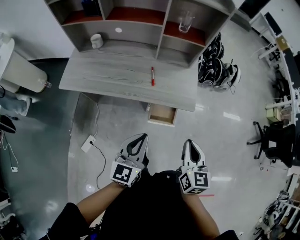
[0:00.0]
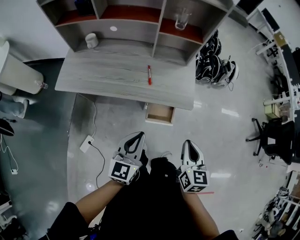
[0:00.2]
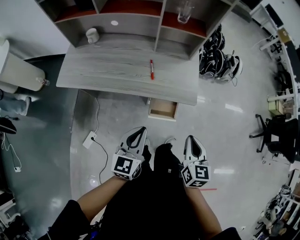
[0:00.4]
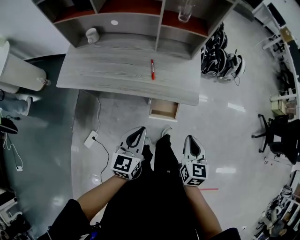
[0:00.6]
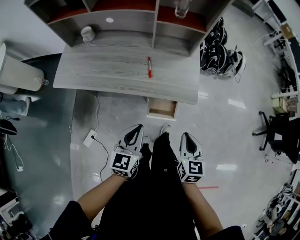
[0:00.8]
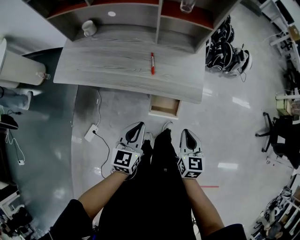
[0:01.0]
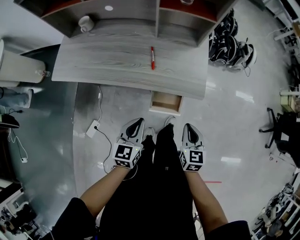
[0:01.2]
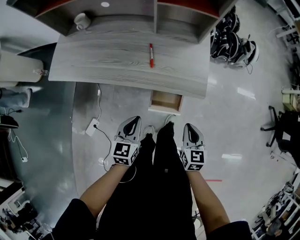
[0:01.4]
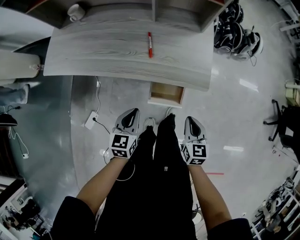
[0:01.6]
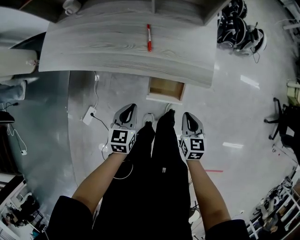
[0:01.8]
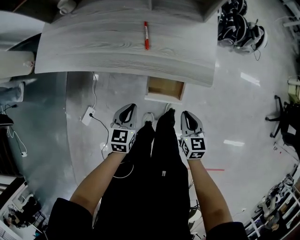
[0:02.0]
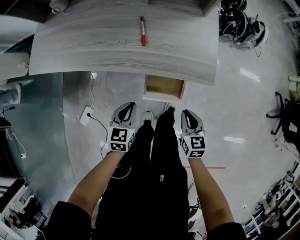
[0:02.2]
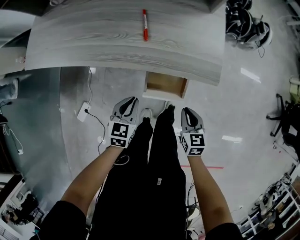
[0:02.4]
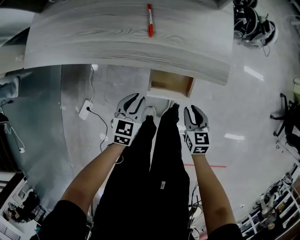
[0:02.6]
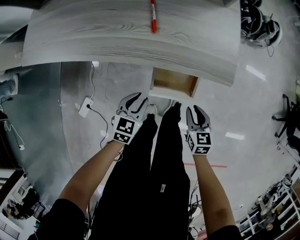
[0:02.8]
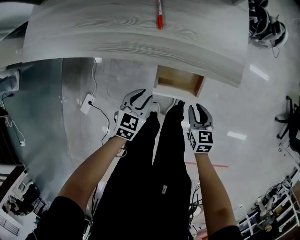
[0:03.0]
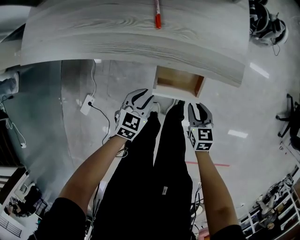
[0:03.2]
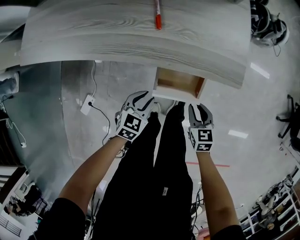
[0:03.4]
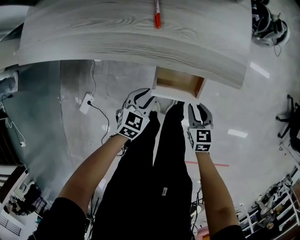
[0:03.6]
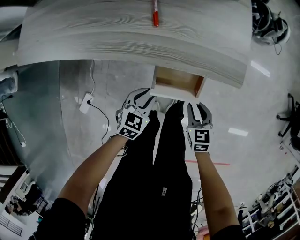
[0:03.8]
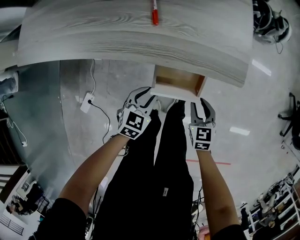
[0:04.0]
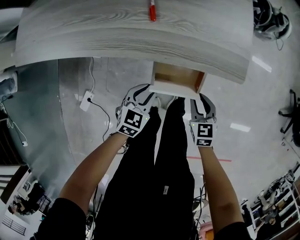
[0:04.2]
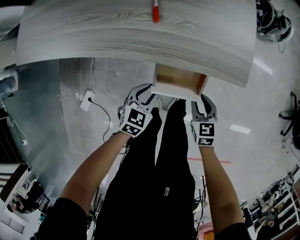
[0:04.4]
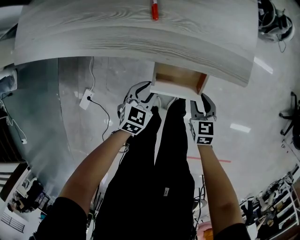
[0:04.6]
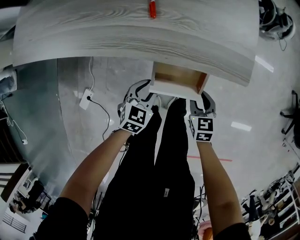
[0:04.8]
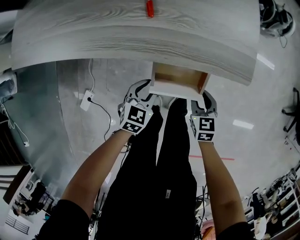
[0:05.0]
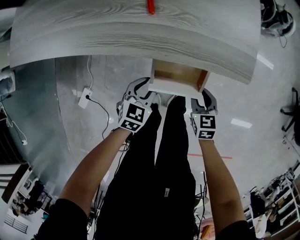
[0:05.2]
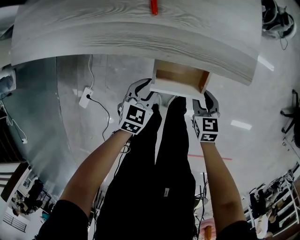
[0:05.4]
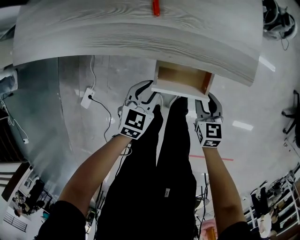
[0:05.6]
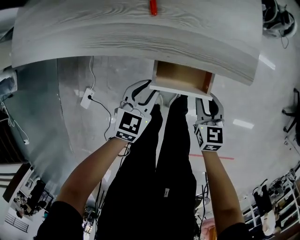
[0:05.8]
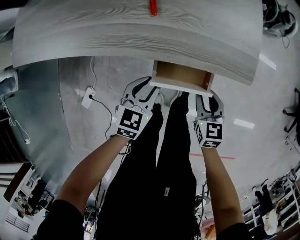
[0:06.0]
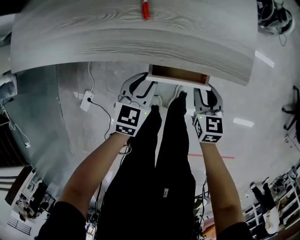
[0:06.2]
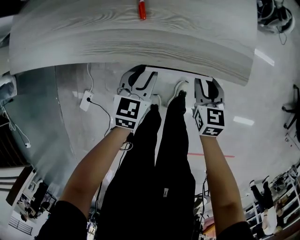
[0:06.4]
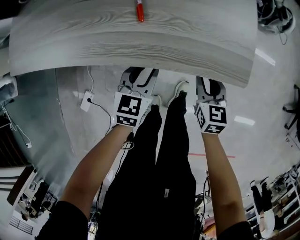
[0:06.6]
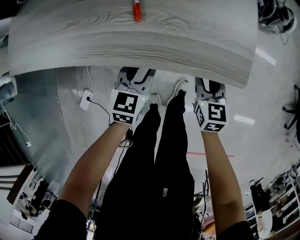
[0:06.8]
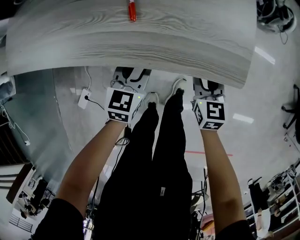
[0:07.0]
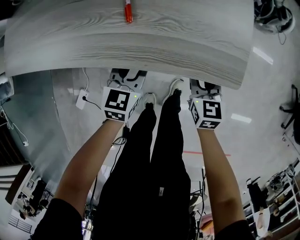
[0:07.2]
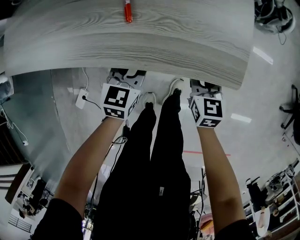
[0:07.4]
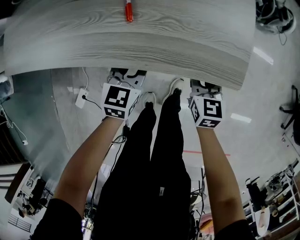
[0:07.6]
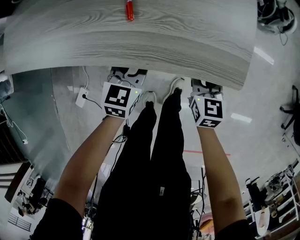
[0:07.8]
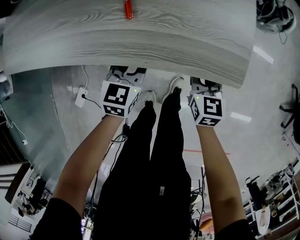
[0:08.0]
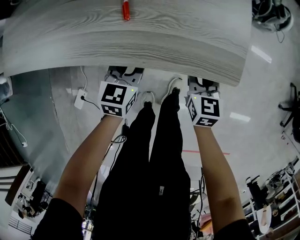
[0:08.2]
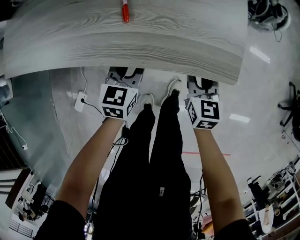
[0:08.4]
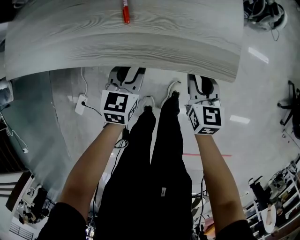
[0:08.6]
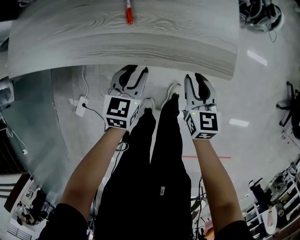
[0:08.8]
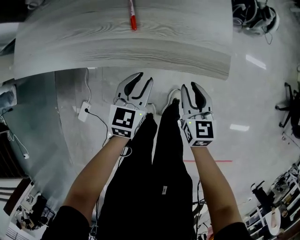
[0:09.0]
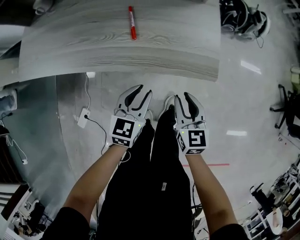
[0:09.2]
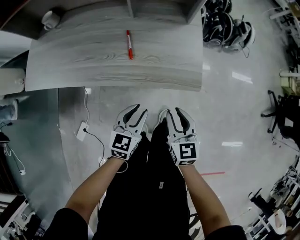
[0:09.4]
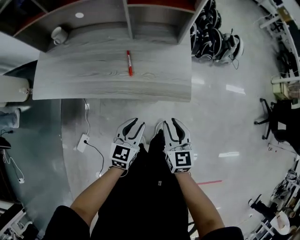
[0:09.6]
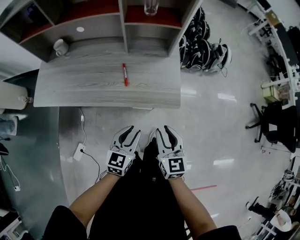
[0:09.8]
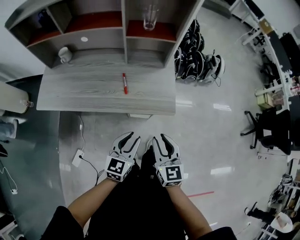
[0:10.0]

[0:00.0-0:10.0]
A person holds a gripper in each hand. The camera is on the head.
0:00.0 to 0:01.4: The two grippers go approximately 20 cm downward. The left gripper swivels about 20 degrees.
0:01.4 to 0:02.8: The grippers both shift downward by roughly 20 cm. The left gripper opens its fingers.
0:02.8 to 0:04.2: The left gripper shifts by about 5 cm.
0:04.2 to 0:05.8: The grippers stay close to where they were, moving slightly.
0:05.8 to 0:07.2: Both grippers travel together forward, approximately 10 cm.
0:07.2 to 0:08.6: There are only small adjustments of the grippers.
0:08.6 to 0:10.0: The two grippers go approximately 35 cm upward and backward.

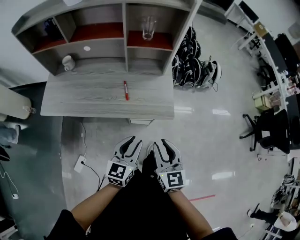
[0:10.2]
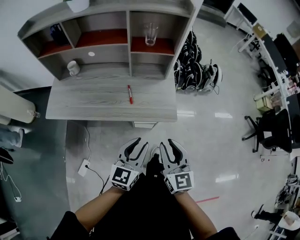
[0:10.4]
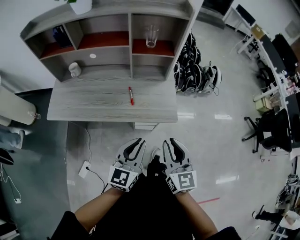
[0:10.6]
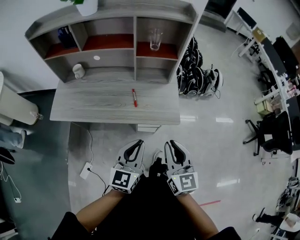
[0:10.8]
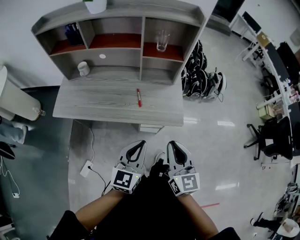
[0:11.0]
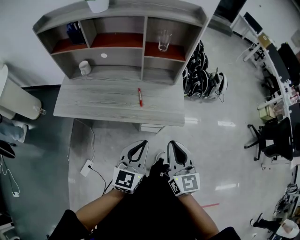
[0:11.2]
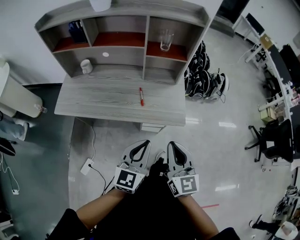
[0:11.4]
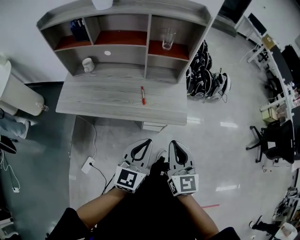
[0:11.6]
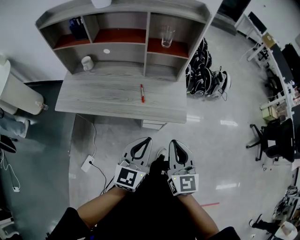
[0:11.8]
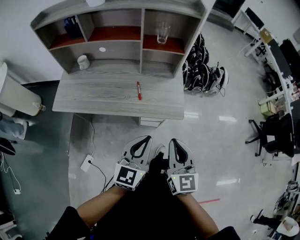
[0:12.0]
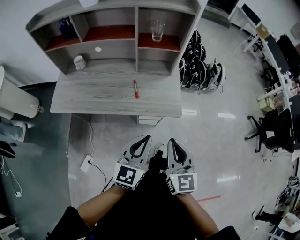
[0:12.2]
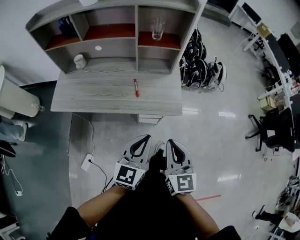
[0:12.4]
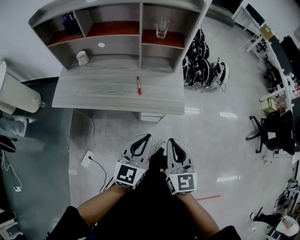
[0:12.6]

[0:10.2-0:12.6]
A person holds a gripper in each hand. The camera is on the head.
0:10.2 to 0:11.4: The grippers both shift upward by about 10 cm. The left gripper closes its fingers. The right gripper closes its fingers.
0:11.4 to 0:12.6: The grippers make only small movements.

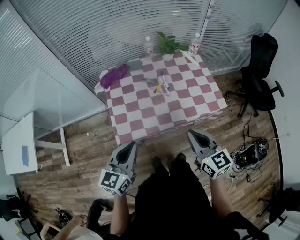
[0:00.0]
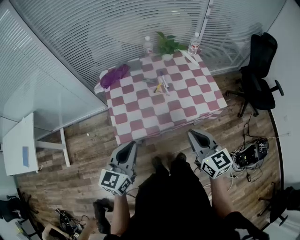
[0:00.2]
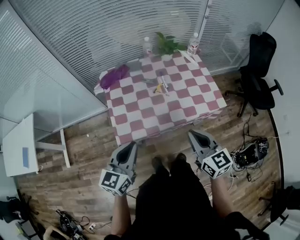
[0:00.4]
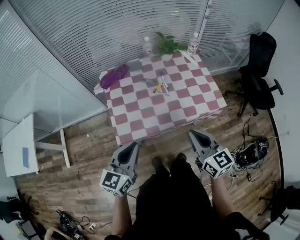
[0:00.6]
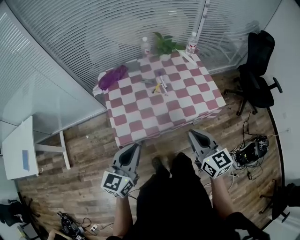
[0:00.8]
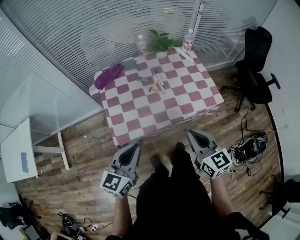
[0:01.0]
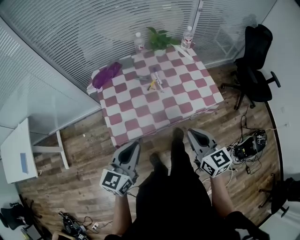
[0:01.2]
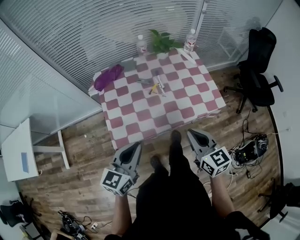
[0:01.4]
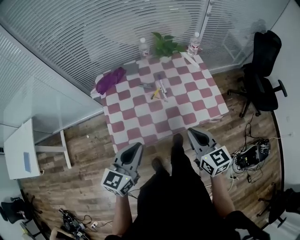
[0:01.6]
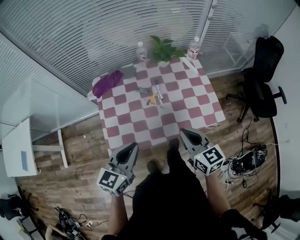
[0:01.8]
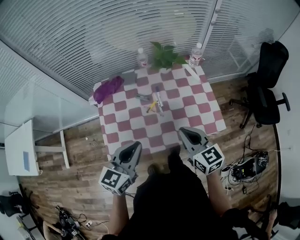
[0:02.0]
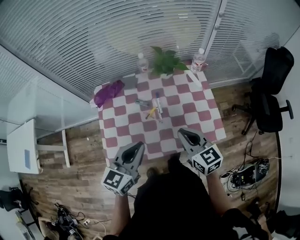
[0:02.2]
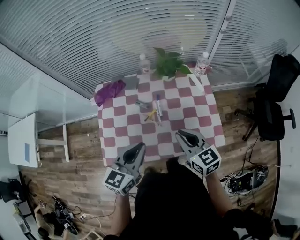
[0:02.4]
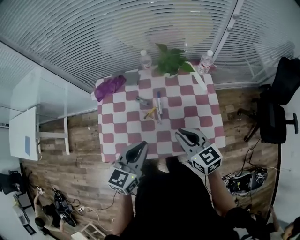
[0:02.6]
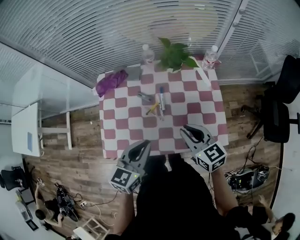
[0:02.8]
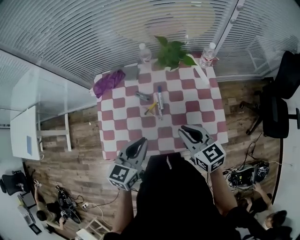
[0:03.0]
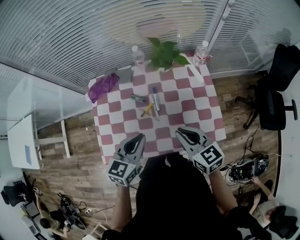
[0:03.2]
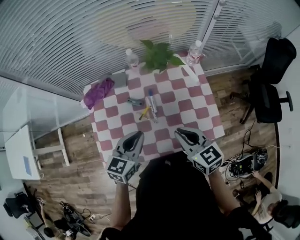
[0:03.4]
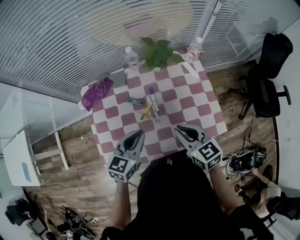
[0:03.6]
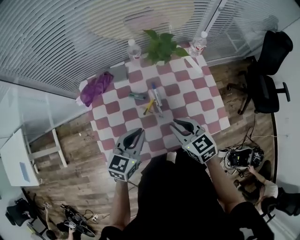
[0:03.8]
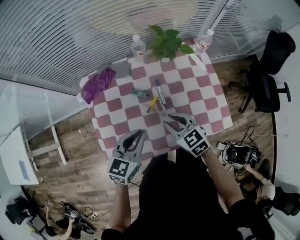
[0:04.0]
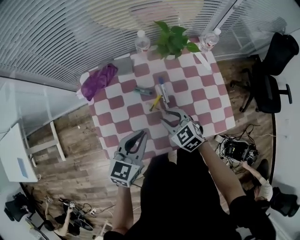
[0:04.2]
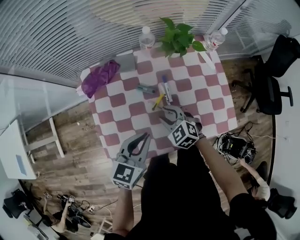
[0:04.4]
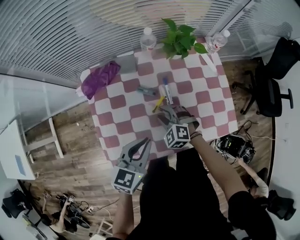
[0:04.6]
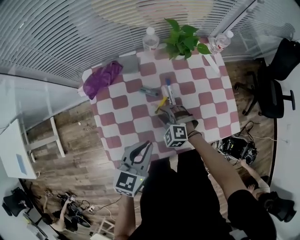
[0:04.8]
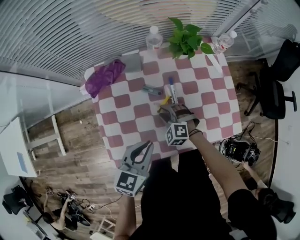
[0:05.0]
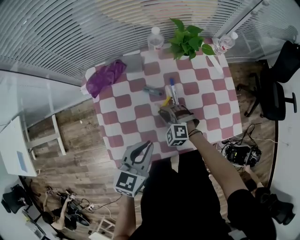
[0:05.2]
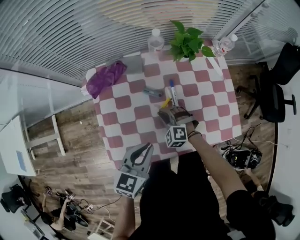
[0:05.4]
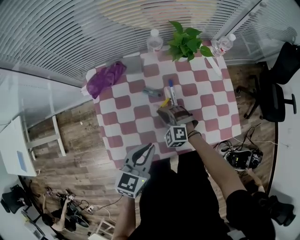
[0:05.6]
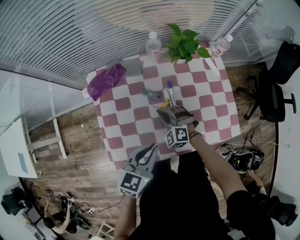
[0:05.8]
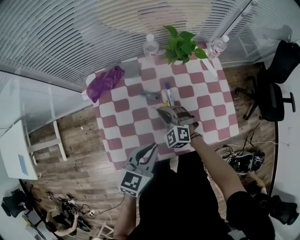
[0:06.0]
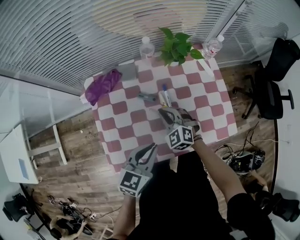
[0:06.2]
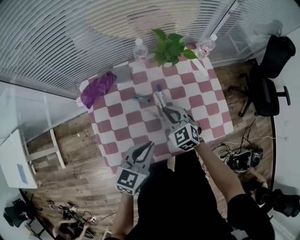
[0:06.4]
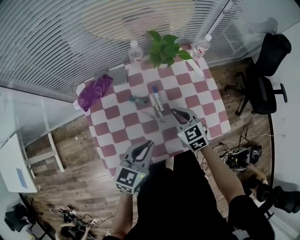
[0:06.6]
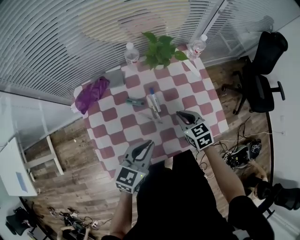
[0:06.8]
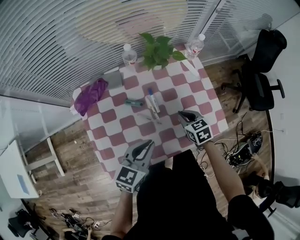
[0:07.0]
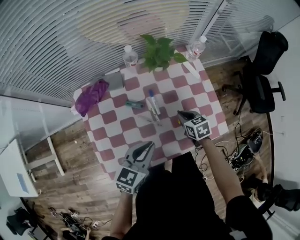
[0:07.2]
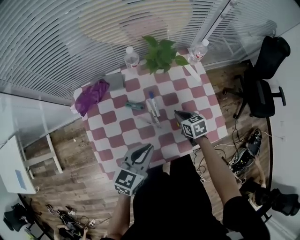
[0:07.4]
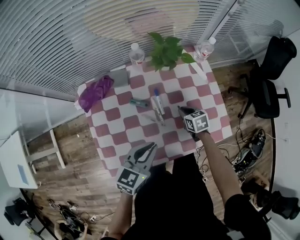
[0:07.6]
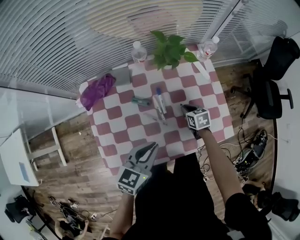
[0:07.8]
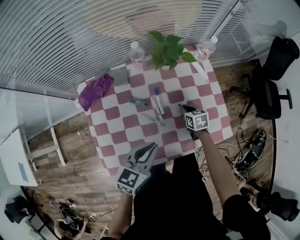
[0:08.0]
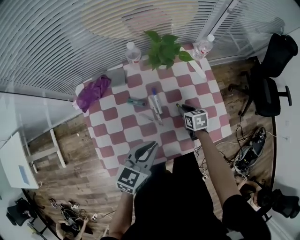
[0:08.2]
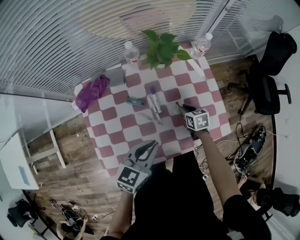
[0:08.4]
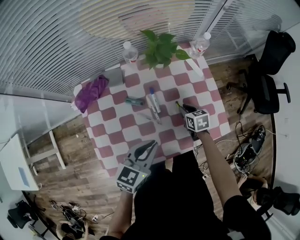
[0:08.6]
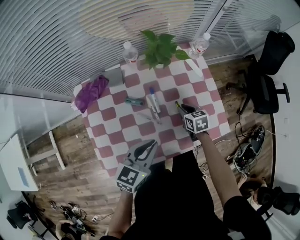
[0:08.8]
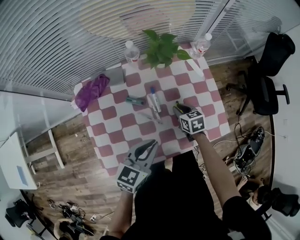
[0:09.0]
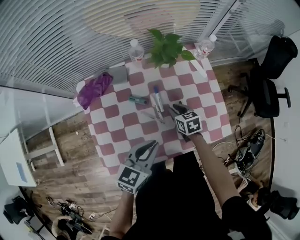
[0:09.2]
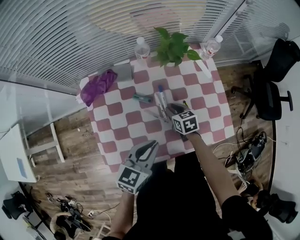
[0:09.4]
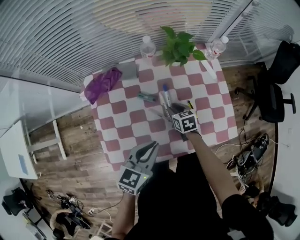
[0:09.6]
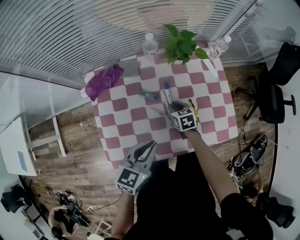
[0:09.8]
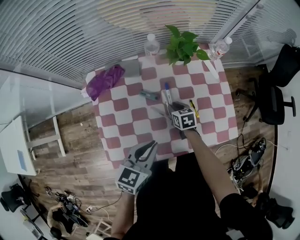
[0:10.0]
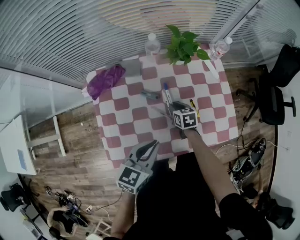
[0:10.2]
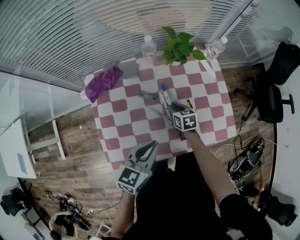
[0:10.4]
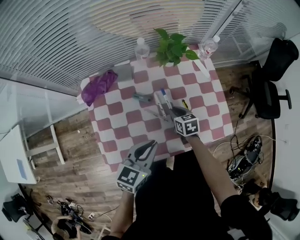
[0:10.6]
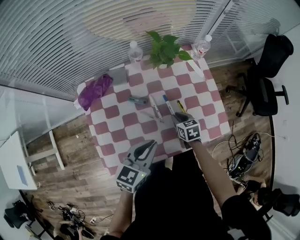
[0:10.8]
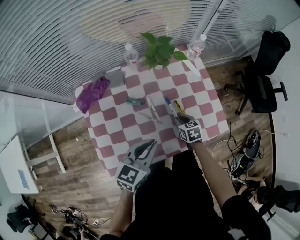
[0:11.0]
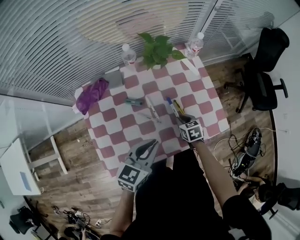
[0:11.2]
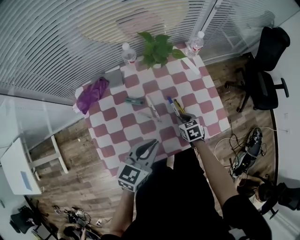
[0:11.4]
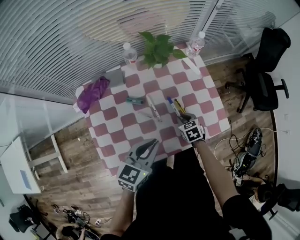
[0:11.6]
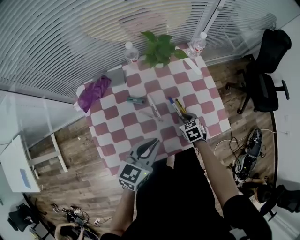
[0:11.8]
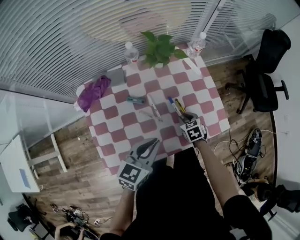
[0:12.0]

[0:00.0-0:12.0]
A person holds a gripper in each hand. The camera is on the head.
0:00.0 to 0:01.6: The two grippers go roughly 5 cm forward.
0:01.6 to 0:03.0: The two grippers go some 20 cm forward and to the right. The right gripper turns by approximately 20 degrees.
0:03.0 to 0:04.4: The left gripper heads to the left and downward, covering about 10 cm. The right gripper moves downward, to the left and forward, approximately 25 cm, rotates about 40 degrees, and opens.
0:04.4 to 0:06.0: The right gripper goes downward and returns, some 10 cm each way, swivels about 20 degrees, and closes up.
0:06.0 to 0:07.6: The right gripper goes some 15 cm to the right, and twists approximately 60 degrees clockwise, seen from behind.
0:07.6 to 0:09.0: The grippers make only small movements.
0:09.0 to 0:10.4: The right gripper travels to the left by some 10 cm.
0:10.4 to 0:12.0: The right gripper shifts roughly 10 cm to the right.
